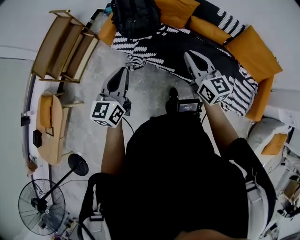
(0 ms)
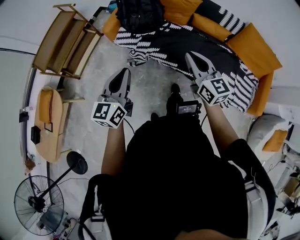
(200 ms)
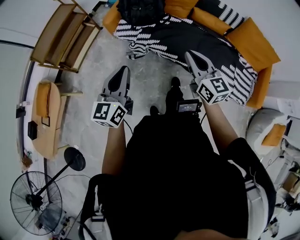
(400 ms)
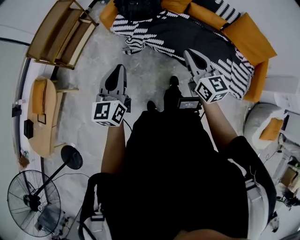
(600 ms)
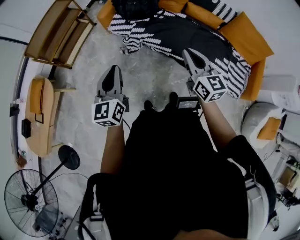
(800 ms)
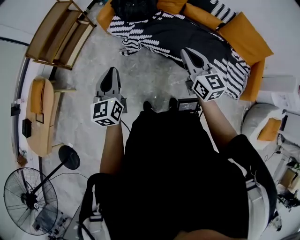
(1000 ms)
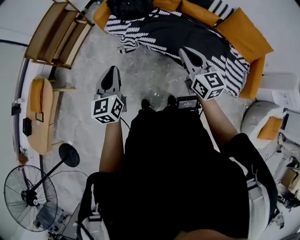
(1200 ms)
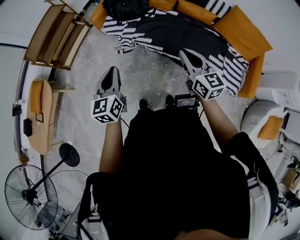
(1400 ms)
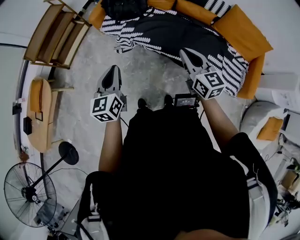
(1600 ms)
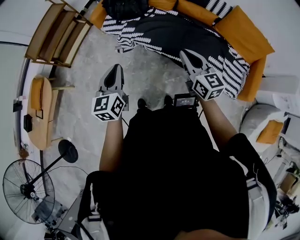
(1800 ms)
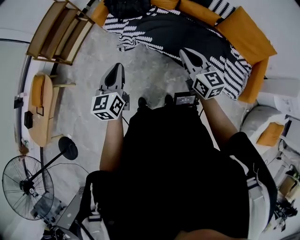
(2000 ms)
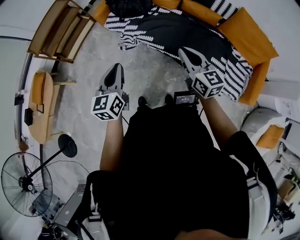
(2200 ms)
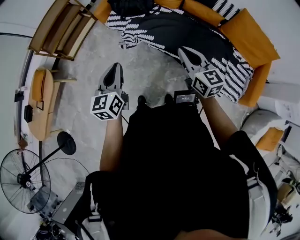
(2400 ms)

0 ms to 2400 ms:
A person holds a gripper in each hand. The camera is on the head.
0 ms to 1200 ms: Both grippers travel together backward, about 15 cm.
1200 ms to 2400 ms: The grippers both shift to the right by about 10 cm.

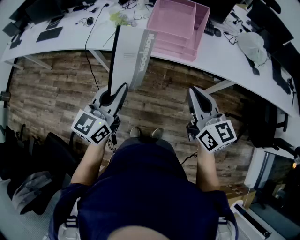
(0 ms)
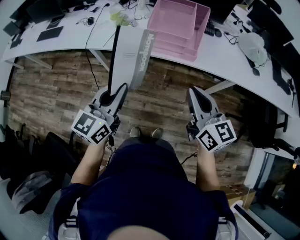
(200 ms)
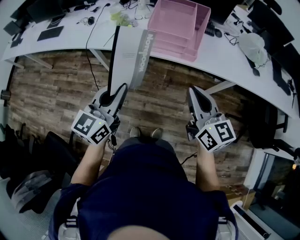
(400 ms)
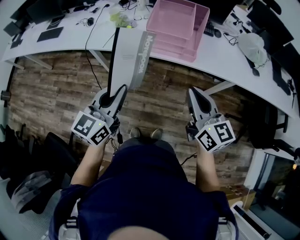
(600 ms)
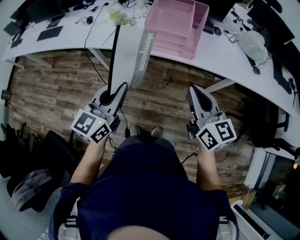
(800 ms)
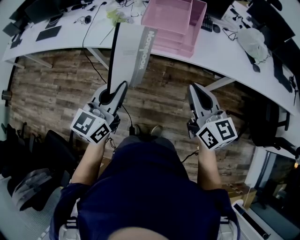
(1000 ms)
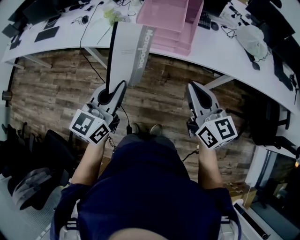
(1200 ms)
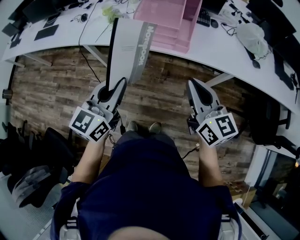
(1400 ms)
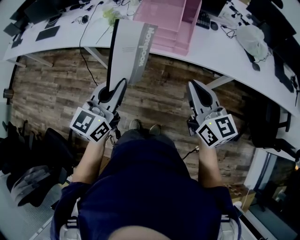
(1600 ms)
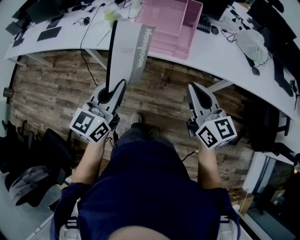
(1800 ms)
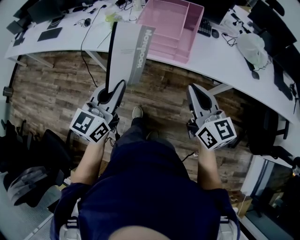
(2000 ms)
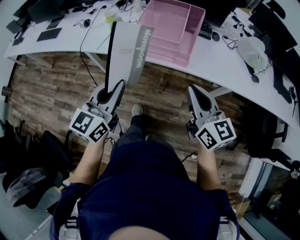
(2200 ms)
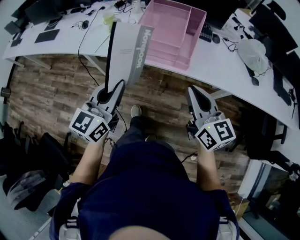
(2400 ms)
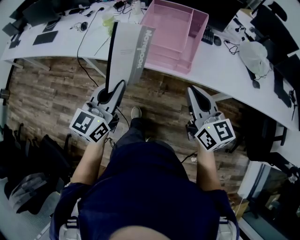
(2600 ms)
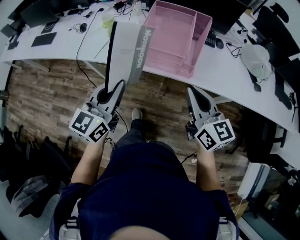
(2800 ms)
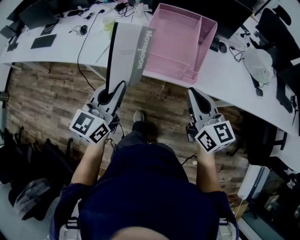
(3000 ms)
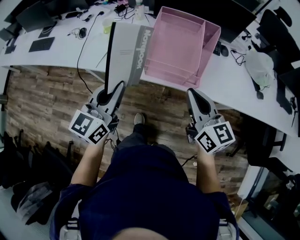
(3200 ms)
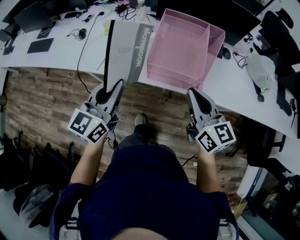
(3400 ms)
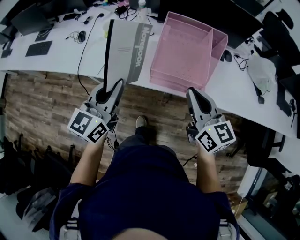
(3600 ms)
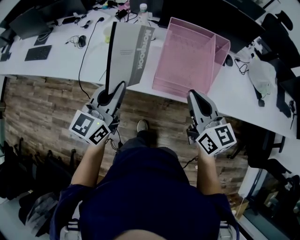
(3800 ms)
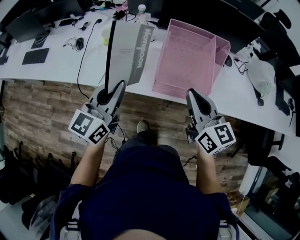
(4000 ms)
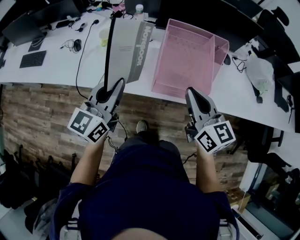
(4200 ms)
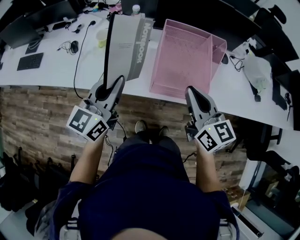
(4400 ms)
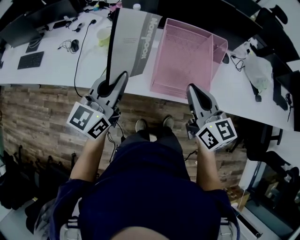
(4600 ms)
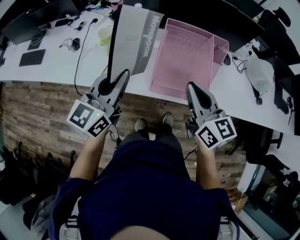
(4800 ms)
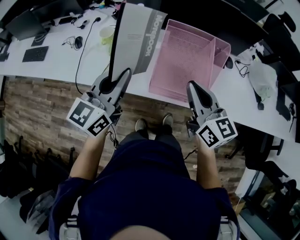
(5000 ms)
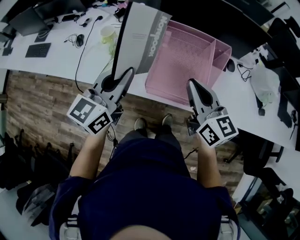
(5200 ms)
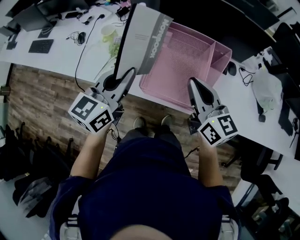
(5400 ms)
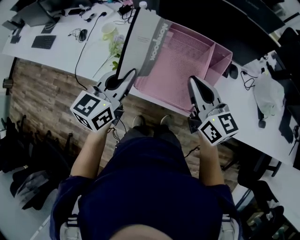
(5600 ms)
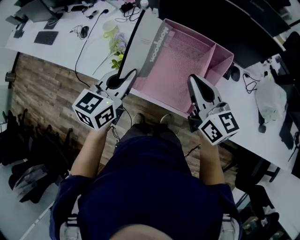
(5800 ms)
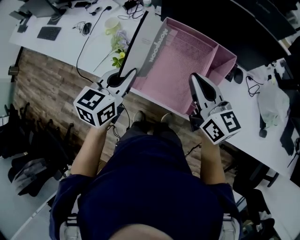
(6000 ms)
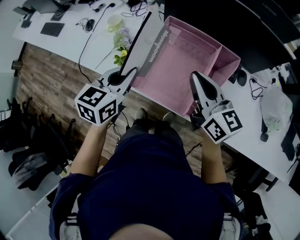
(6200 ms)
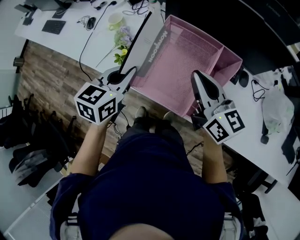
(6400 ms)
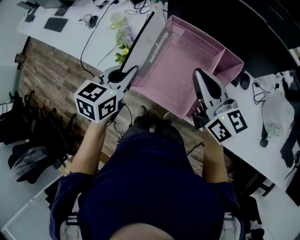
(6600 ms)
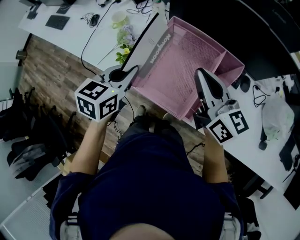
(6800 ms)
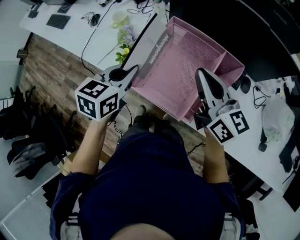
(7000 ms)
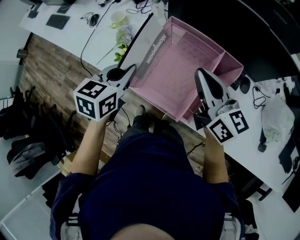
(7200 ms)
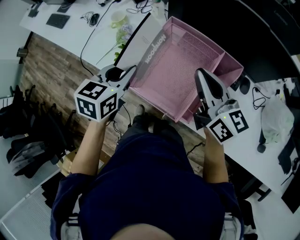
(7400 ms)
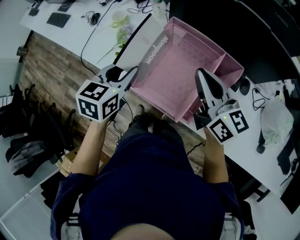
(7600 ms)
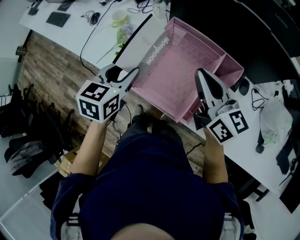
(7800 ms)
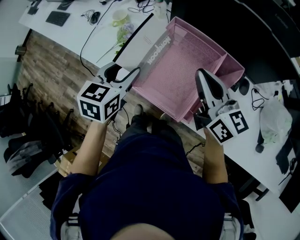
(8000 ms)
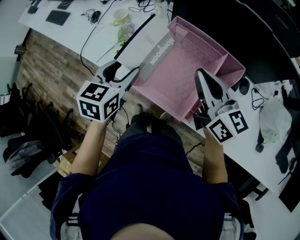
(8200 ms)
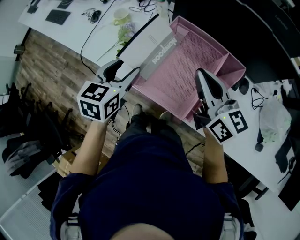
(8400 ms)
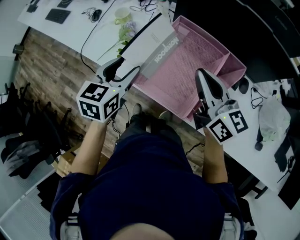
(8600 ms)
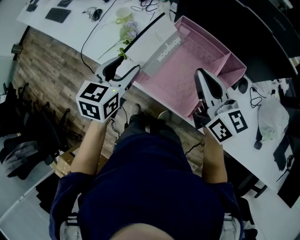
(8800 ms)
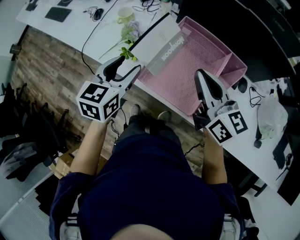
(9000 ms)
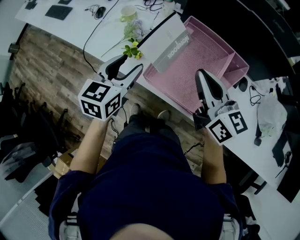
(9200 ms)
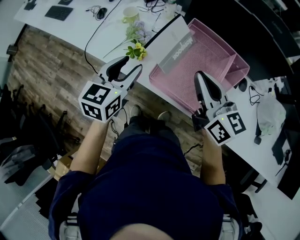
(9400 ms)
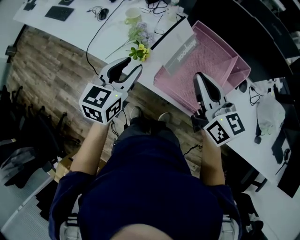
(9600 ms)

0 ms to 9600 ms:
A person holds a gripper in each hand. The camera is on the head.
0 ms to 1600 ms: Both grippers move to the right, some 5 cm.
1600 ms to 3200 ms: Both grippers travel together forward, about 20 cm.
3200 ms to 4800 ms: The left gripper goes approximately 15 cm forward, while the right gripper shifts some 15 cm forward and to the left.
4800 ms to 6400 ms: The right gripper goes some 15 cm forward and to the right, and changes its angle by approximately 20 degrees. The left gripper goes roughly 15 cm to the right and downward, and points its fingers about 30 degrees further downward.
6400 ms to 8000 ms: The left gripper opens up.
8000 ms to 9600 ms: The two grippers go approximately 10 cm to the left.

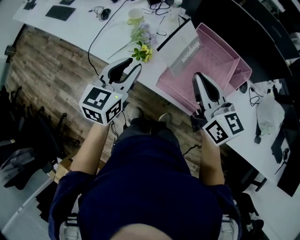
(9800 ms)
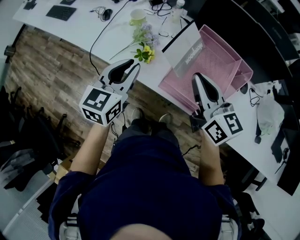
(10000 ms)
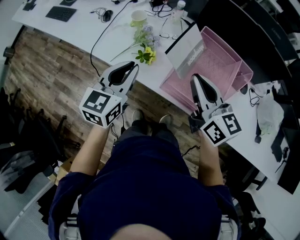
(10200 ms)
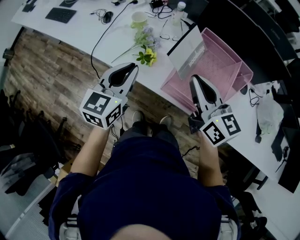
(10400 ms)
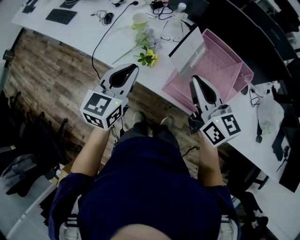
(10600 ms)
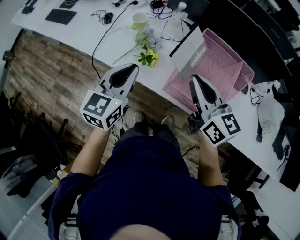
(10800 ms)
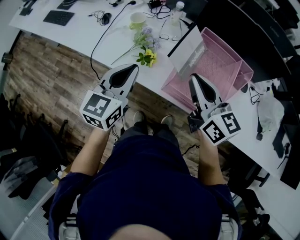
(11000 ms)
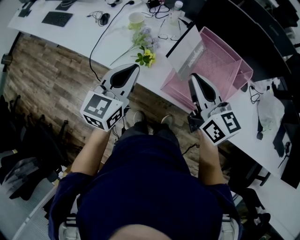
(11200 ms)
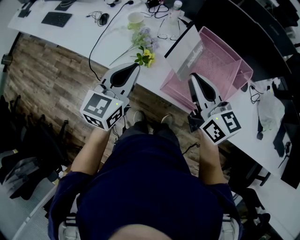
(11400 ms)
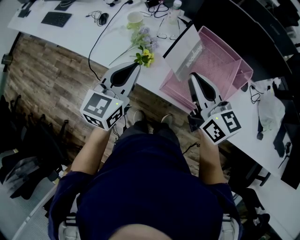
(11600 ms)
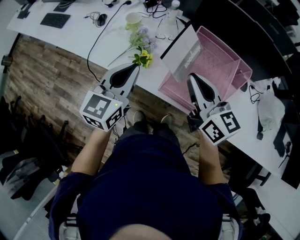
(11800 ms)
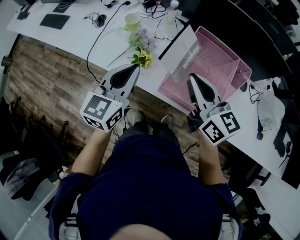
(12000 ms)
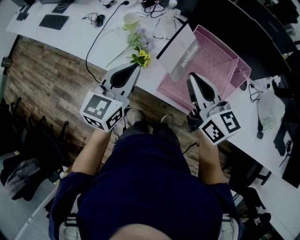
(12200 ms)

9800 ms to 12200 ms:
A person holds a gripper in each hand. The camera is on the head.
9800 ms to 11000 ms: The left gripper closes.
11000 ms to 12200 ms: There are only small adjustments of the grippers.

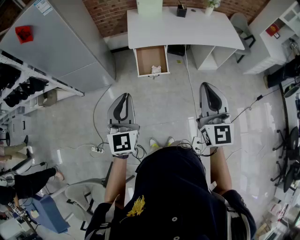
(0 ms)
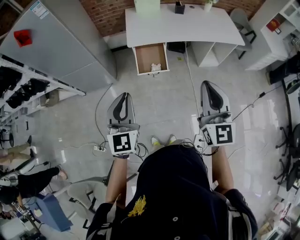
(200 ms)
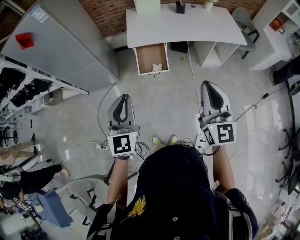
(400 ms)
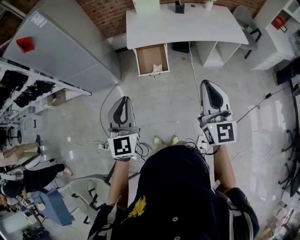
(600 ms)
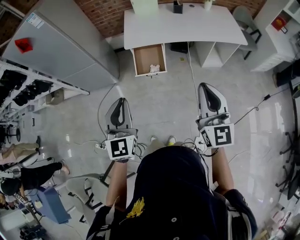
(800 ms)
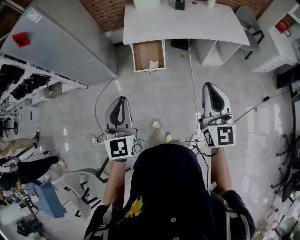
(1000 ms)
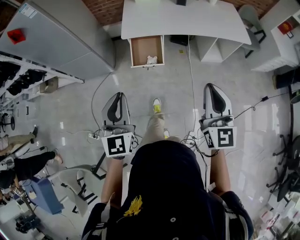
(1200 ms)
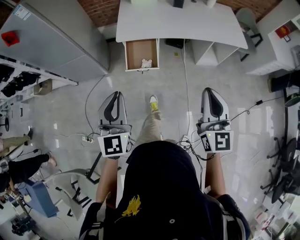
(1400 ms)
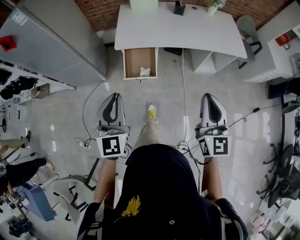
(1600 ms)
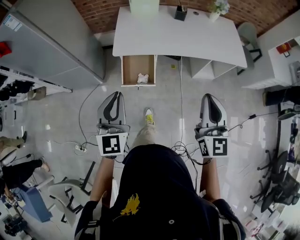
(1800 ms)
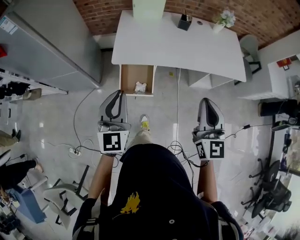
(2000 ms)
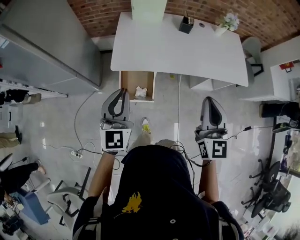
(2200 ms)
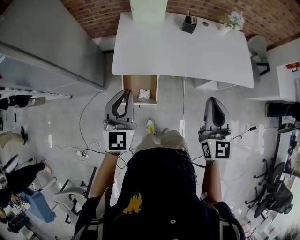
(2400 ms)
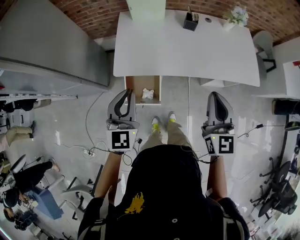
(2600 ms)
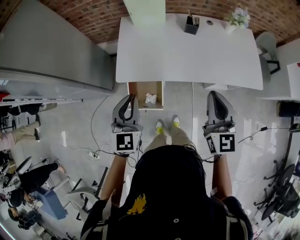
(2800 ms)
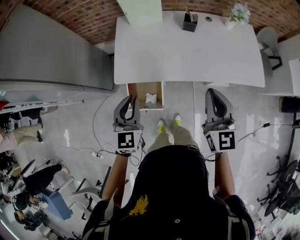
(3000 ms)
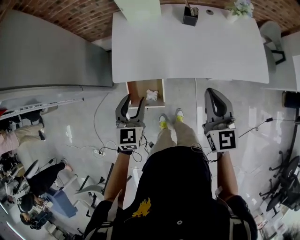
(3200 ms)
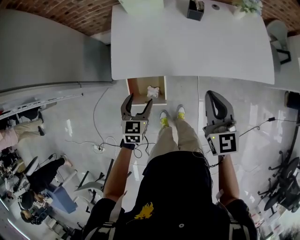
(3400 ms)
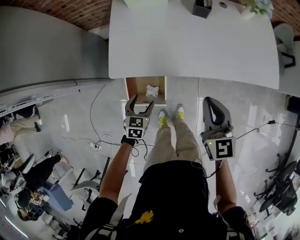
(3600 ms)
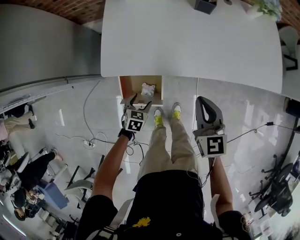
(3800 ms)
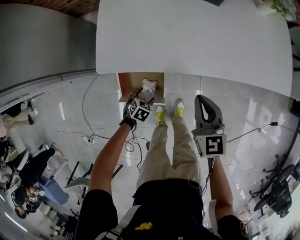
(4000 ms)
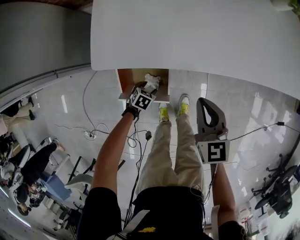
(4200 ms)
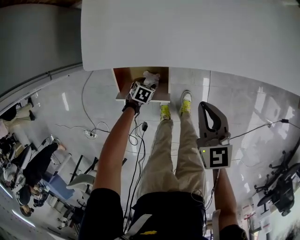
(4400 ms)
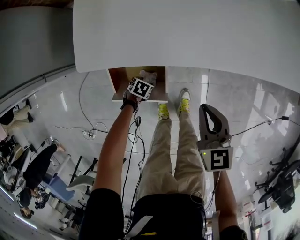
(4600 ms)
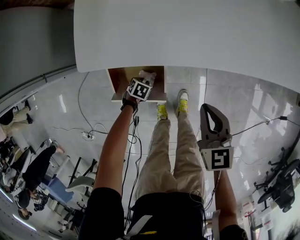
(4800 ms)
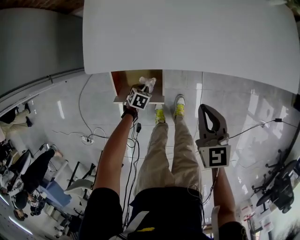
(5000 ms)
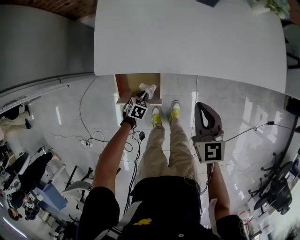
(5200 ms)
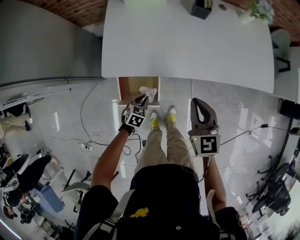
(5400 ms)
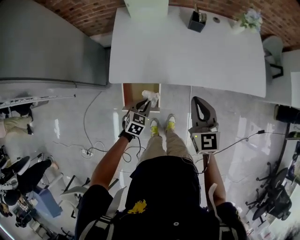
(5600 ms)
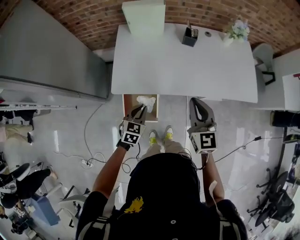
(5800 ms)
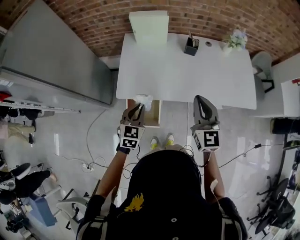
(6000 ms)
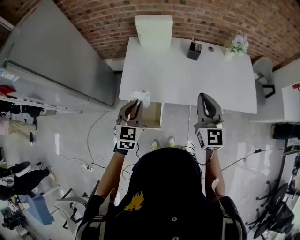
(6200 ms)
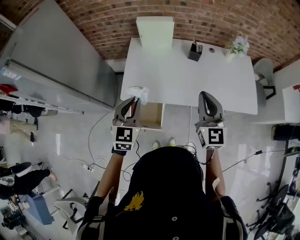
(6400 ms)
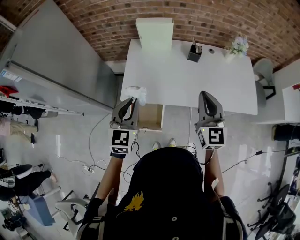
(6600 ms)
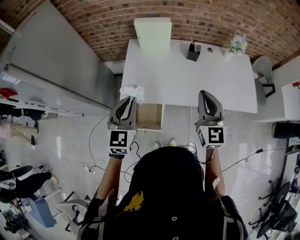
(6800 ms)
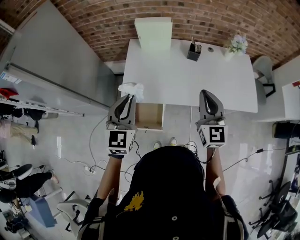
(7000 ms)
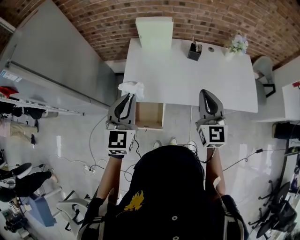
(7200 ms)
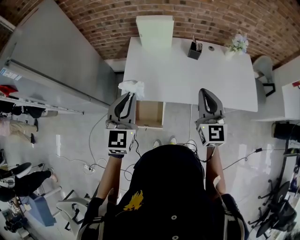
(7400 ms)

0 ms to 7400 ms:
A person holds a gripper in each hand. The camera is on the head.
0 ms to 1400 ms: Both grippers travel together to the right, approximately 15 cm.
1400 ms to 3000 ms: The pair of grippers is taken forward, approximately 40 cm.
3000 ms to 4400 ms: The right gripper heads downward, covering some 35 cm, and rotates roughly 30 degrees; the left gripper shifts some 70 cm downward, tips its fingers downward by roughly 60 degrees, and opens up.
4400 ms to 6000 ms: The right gripper moves upward, roughly 35 cm, and swivels about 30 degrees; the left gripper shifts approximately 60 cm upward, tips its fingers upward by some 40 degrees, and closes its fingers.
6000 ms to 7400 ms: The left gripper goes approximately 20 cm upward, and swivels some 20 degrees.

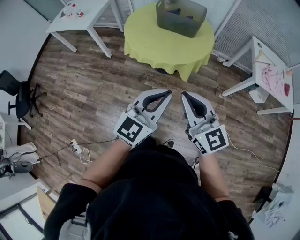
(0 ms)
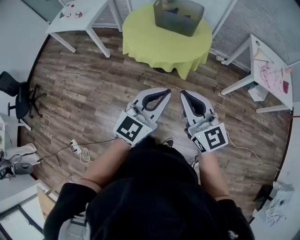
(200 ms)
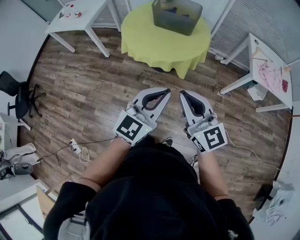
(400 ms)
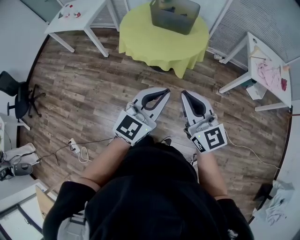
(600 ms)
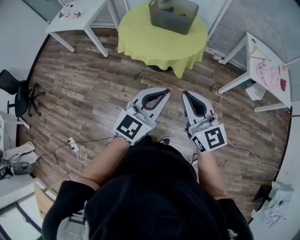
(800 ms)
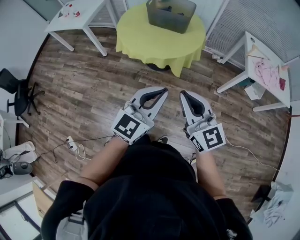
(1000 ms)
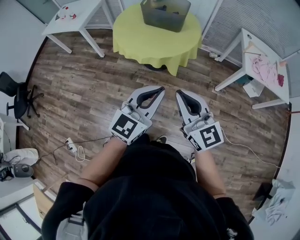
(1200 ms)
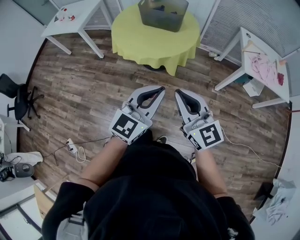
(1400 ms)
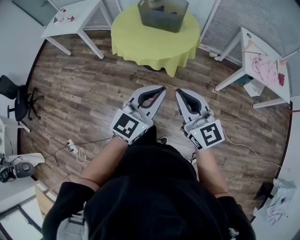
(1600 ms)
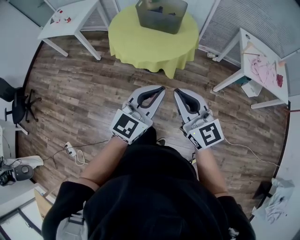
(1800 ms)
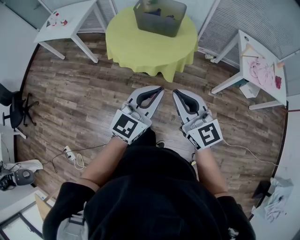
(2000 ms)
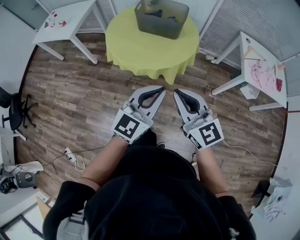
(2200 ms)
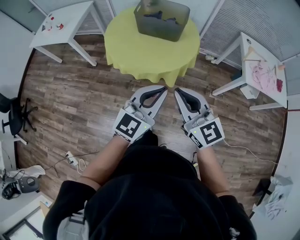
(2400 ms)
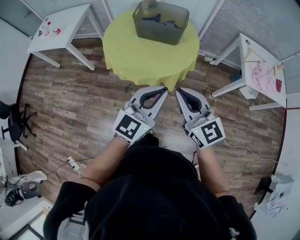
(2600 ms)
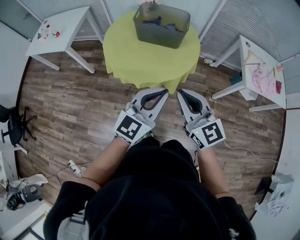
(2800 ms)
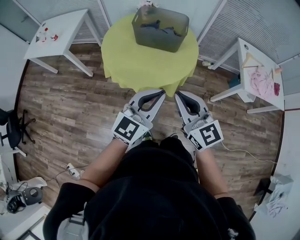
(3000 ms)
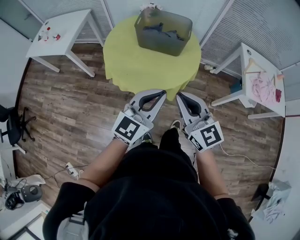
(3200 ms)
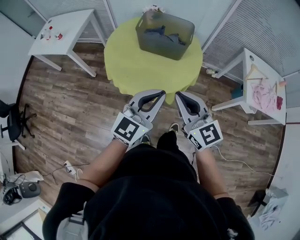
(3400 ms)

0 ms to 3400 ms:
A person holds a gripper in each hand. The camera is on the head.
0 ms to 1600 ms: Both grippers move to the right, approximately 10 cm.
1600 ms to 3400 ms: Both grippers travel together forward, some 25 cm.
